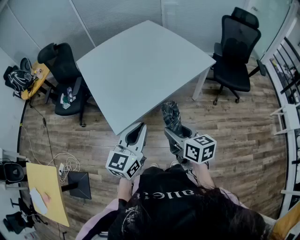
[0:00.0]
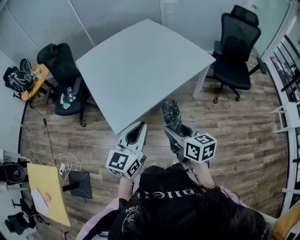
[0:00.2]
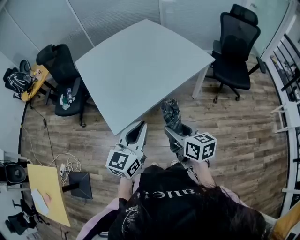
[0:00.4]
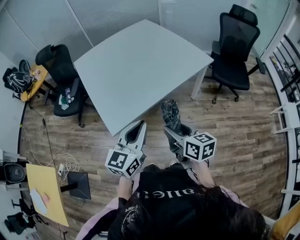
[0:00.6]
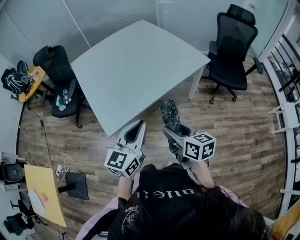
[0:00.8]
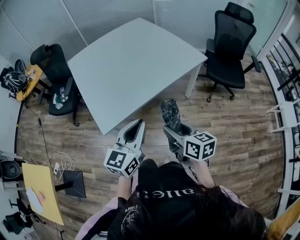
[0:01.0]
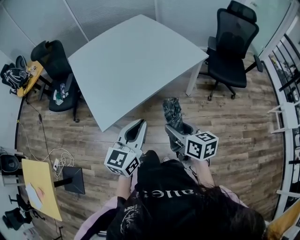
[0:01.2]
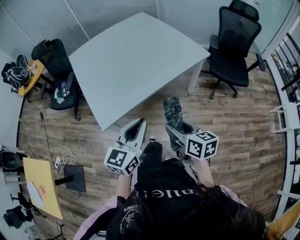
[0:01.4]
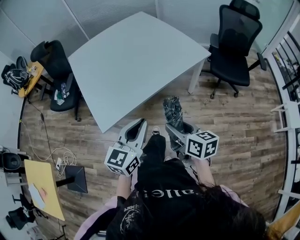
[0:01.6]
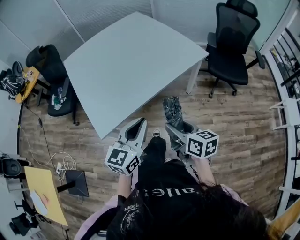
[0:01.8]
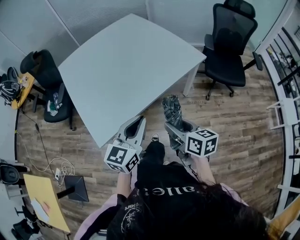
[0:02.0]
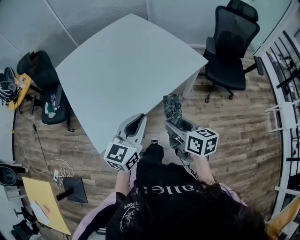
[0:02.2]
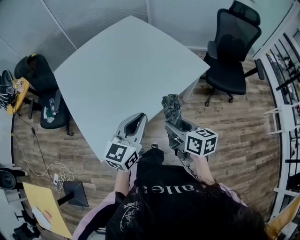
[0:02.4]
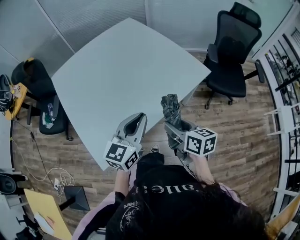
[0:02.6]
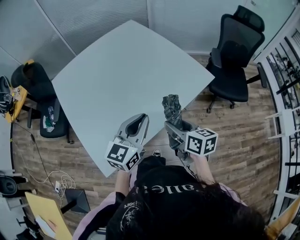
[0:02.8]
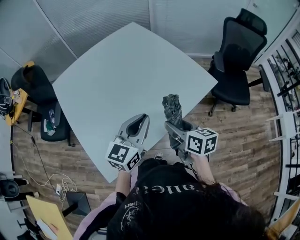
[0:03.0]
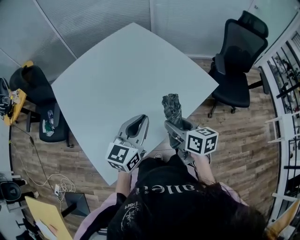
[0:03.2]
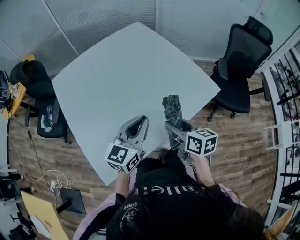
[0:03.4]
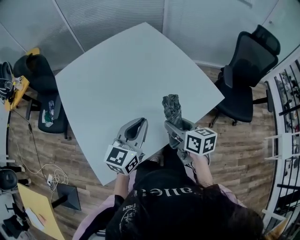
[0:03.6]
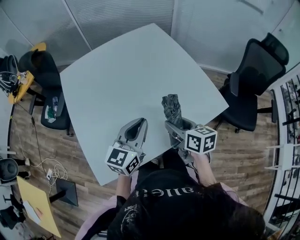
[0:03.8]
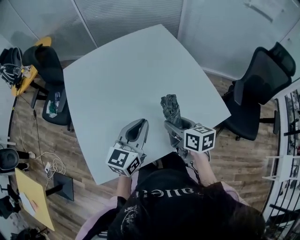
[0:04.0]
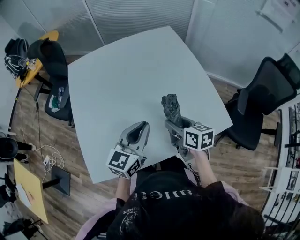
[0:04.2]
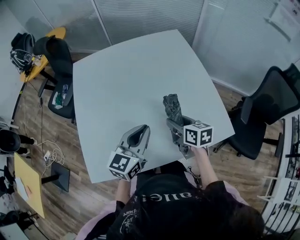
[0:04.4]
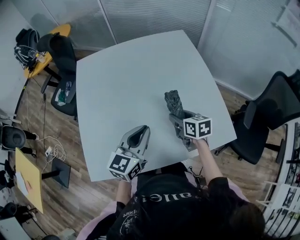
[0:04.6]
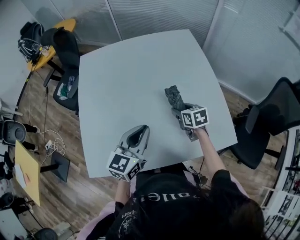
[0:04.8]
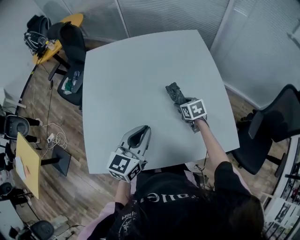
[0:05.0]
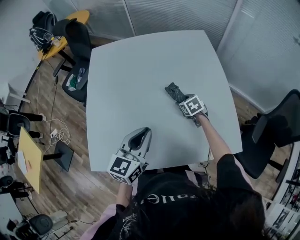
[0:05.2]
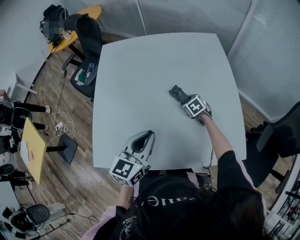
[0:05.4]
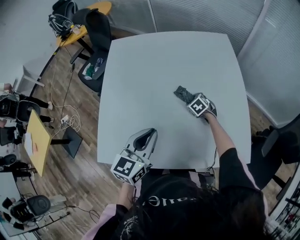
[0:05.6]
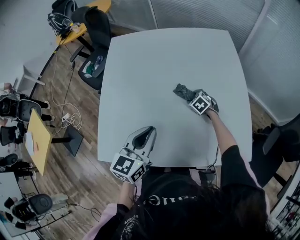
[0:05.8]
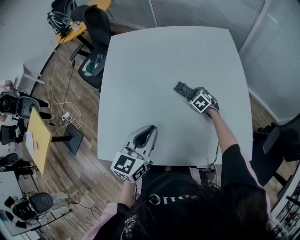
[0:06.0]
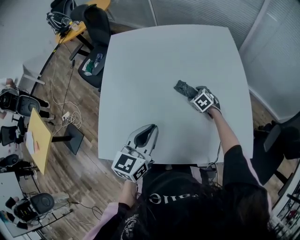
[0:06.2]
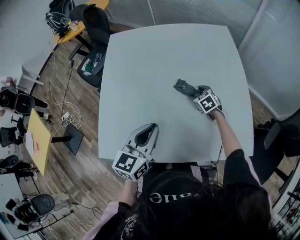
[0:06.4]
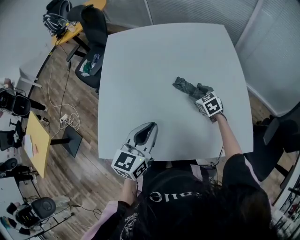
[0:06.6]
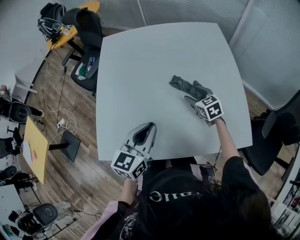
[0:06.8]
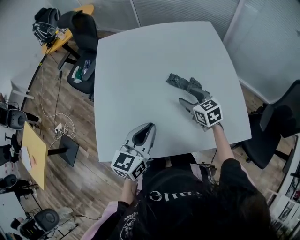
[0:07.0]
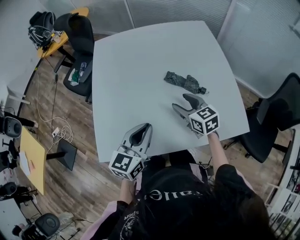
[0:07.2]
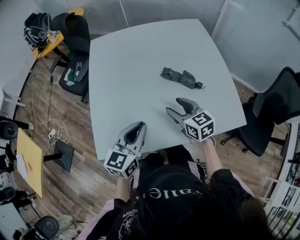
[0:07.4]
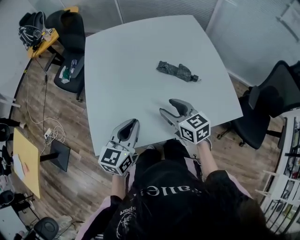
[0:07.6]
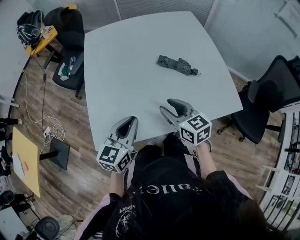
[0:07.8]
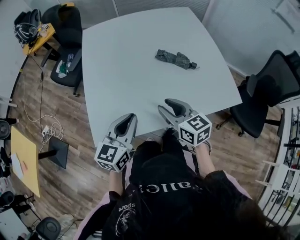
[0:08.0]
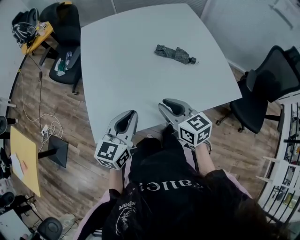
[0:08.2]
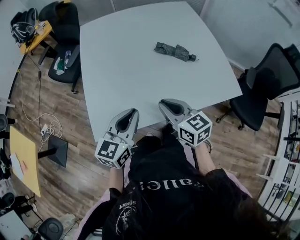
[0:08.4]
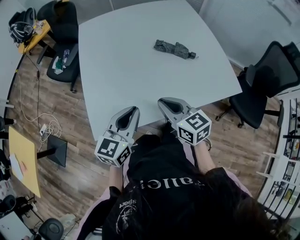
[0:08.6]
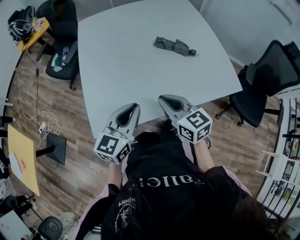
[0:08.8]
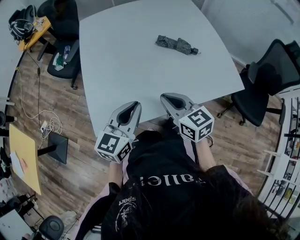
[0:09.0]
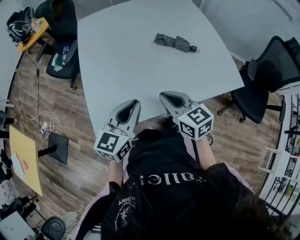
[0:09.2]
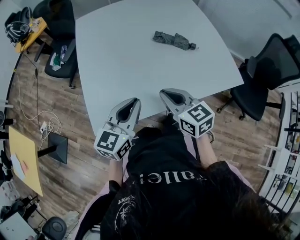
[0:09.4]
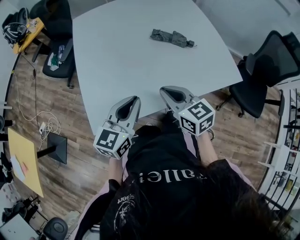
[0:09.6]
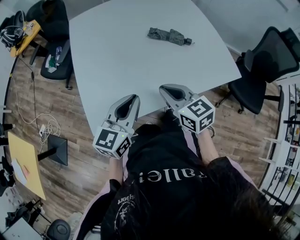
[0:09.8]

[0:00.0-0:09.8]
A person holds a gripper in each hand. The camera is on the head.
0:00.0 to 0:01.4: Both grippers move to the right, roughly 10 cm.
0:01.4 to 0:02.8: The grippers both shift forward by some 25 cm.
0:02.8 to 0:04.2: Both grippers move forward, some 15 cm. The right gripper changes its angle by some 20 degrees; the left gripper turns by roughly 20 degrees.
0:04.2 to 0:05.6: The left gripper rotates approximately 20 degrees. Meanwhile the right gripper travels forward and downward by some 30 cm, and twists roughly 60 degrees counterclockwise, seen from behind.
0:05.6 to 0:07.0: The right gripper moves upward and backward, approximately 20 cm, and changes its angle by approximately 30 degrees.
0:07.0 to 0:08.4: The left gripper shifts about 15 cm backward and to the left. Meanwhile the right gripper is displaced backward and to the left by roughly 25 cm, and closes its fingers.
0:08.4 to 0:09.8: The grippers make only small movements.

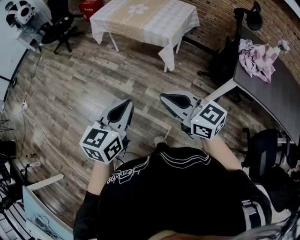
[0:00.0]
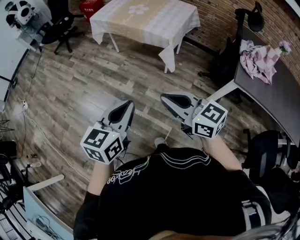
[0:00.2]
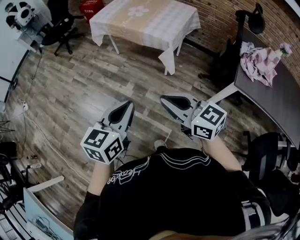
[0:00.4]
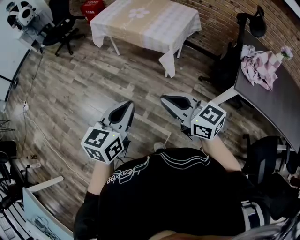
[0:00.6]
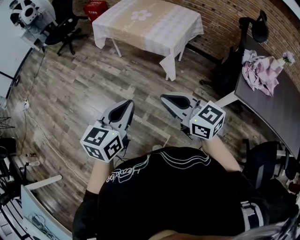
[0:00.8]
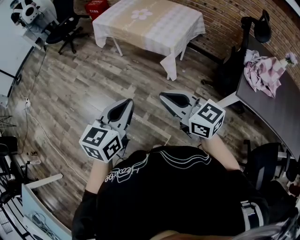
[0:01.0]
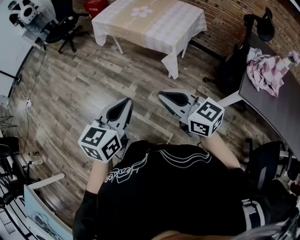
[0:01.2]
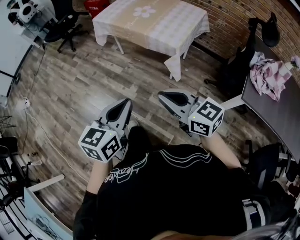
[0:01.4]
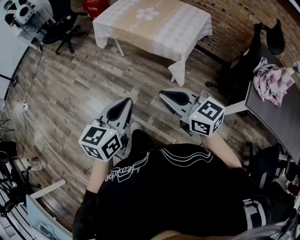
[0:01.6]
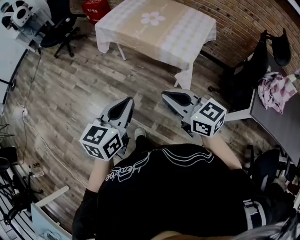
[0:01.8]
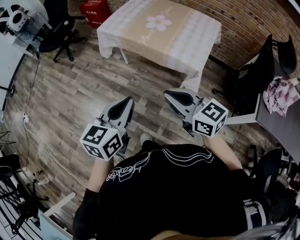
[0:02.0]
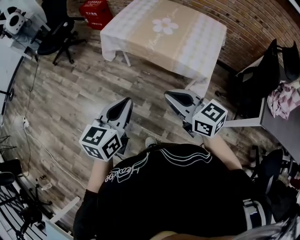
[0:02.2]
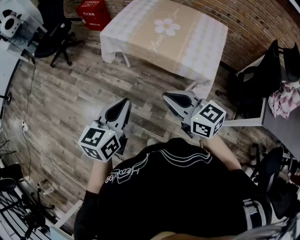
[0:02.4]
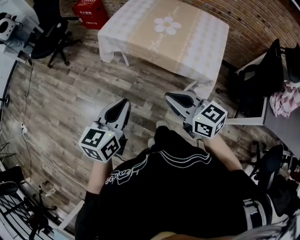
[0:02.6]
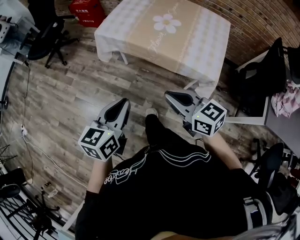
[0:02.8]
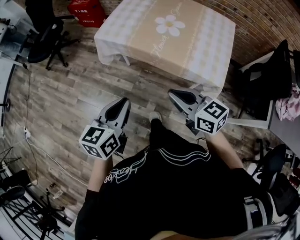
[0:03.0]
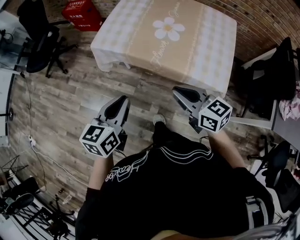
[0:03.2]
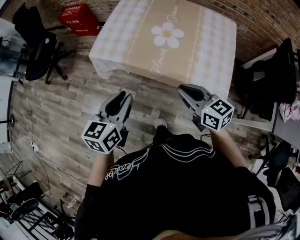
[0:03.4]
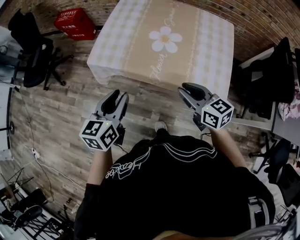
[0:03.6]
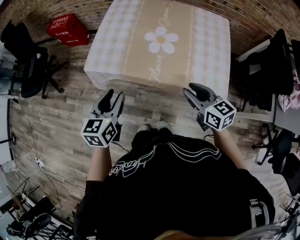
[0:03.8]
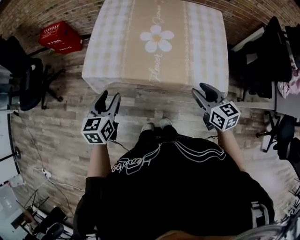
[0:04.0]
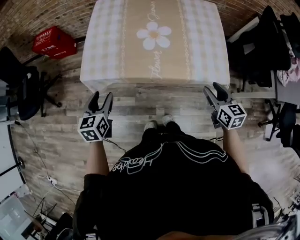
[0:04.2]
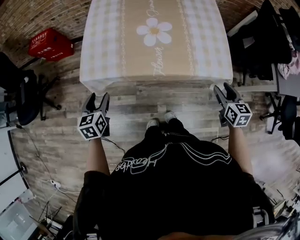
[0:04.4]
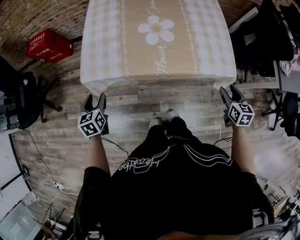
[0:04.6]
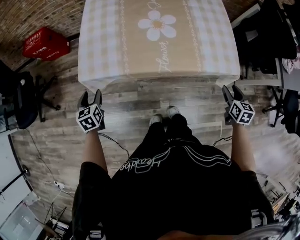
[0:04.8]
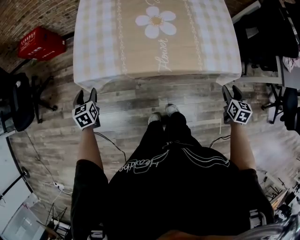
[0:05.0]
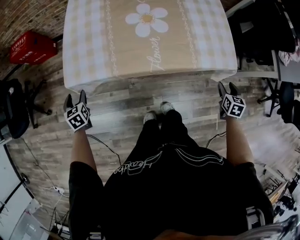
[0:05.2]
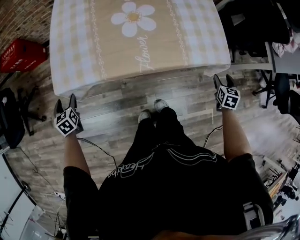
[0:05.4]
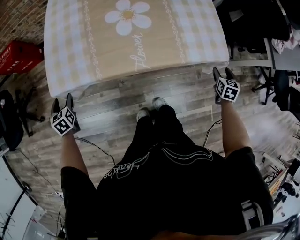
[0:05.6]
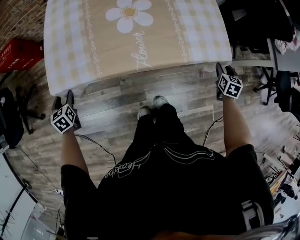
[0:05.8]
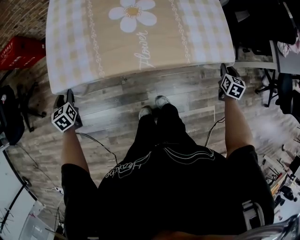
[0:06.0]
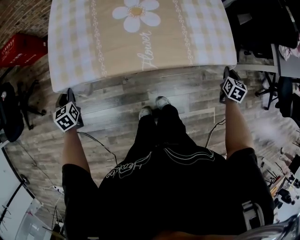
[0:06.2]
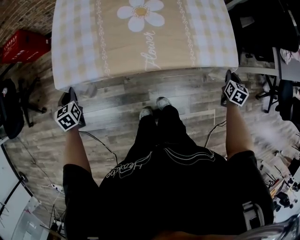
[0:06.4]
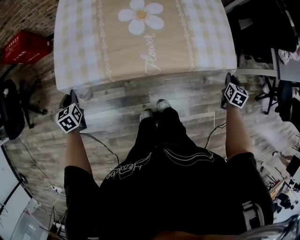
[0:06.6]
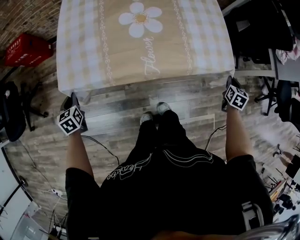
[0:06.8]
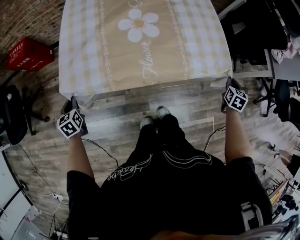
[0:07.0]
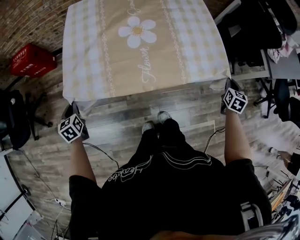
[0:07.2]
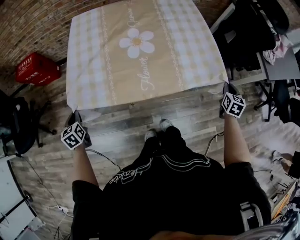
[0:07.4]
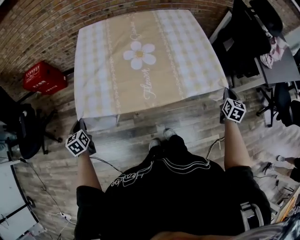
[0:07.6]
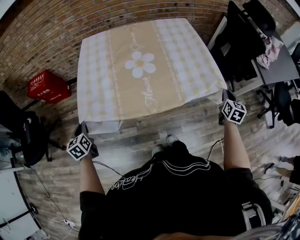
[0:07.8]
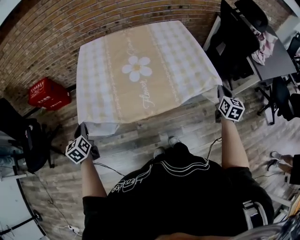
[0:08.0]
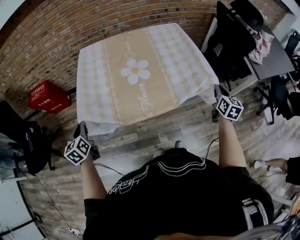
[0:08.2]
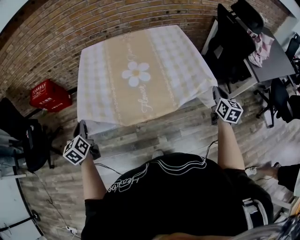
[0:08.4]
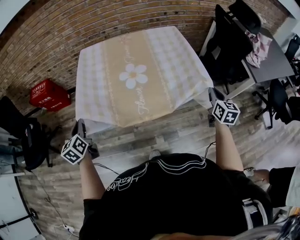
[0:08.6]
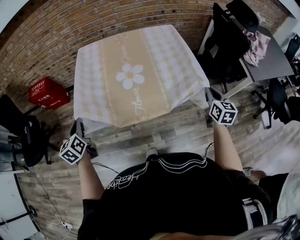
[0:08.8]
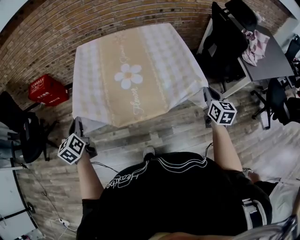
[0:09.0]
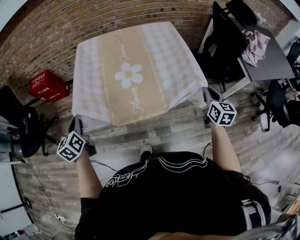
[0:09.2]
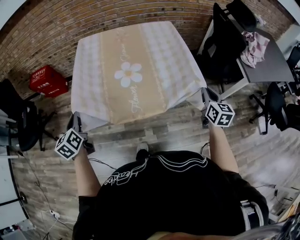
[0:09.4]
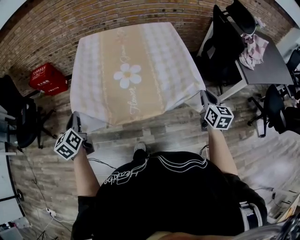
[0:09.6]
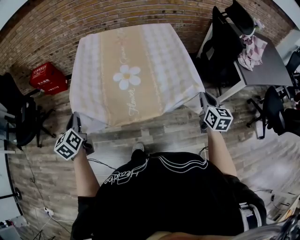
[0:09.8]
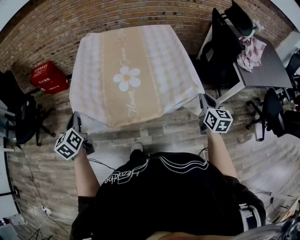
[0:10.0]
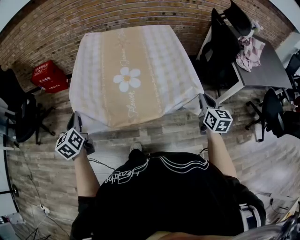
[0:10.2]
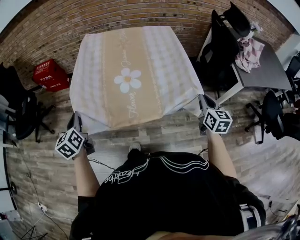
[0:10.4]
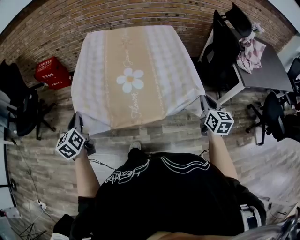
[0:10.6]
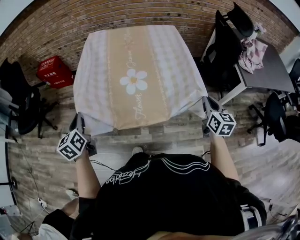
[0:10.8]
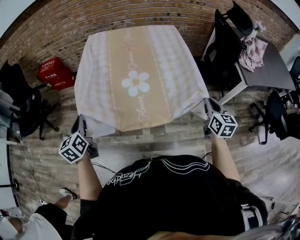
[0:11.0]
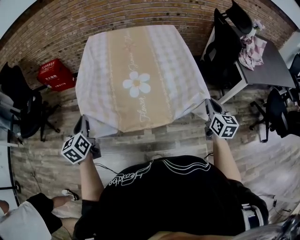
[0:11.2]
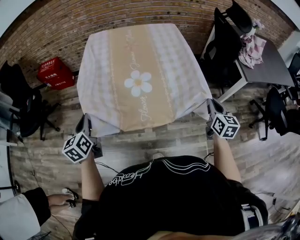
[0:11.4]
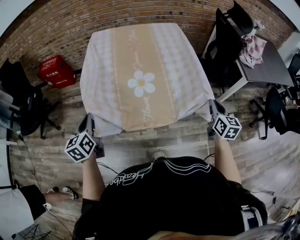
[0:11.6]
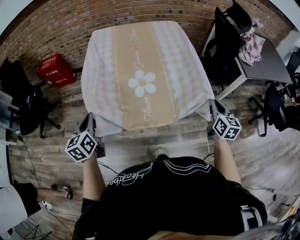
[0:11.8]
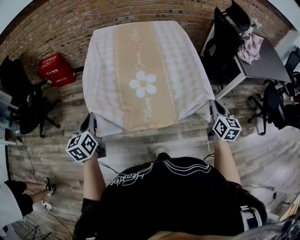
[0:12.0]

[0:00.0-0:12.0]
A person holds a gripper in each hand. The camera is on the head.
0:00.0 to 0:01.6: The grippers both shift forward by approximately 20 cm.
0:01.6 to 0:03.0: The left gripper heads forward and to the left, covering about 40 cm, while the right gripper heads forward, covering about 35 cm.
0:03.0 to 0:04.4: The left gripper ends up some 35 cm from where it was, swivels approximately 20 degrees, and opens up, while the right gripper changes place by about 25 cm, turns by approximately 60 degrees, and opens up.
0:04.4 to 0:06.0: The right gripper travels downward and to the right by about 20 cm, swivels roughly 30 degrees, and closes up. Meanwhile the left gripper heads downward, to the left and forward, covering approximately 20 cm.
0:06.0 to 0:07.6: The grippers both shift upward by roughly 15 cm. The right gripper closes. Meanwhile the left gripper closes up.
0:07.6 to 0:09.0: The left gripper moves upward and to the right, some 25 cm. Meanwhile the right gripper is displaced upward by roughly 10 cm, and turns by roughly 20 degrees.
0:09.0 to 0:10.4: The right gripper shifts approximately 10 cm backward. Meanwhile the left gripper heads backward and to the right, covering roughly 15 cm.
0:10.4 to 0:12.0: The right gripper goes approximately 15 cm backward and to the left. The left gripper is displaced backward by some 10 cm.

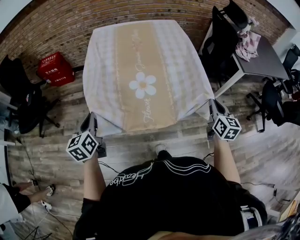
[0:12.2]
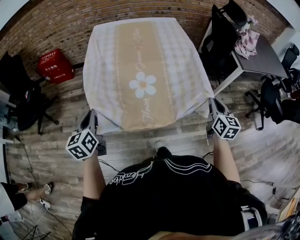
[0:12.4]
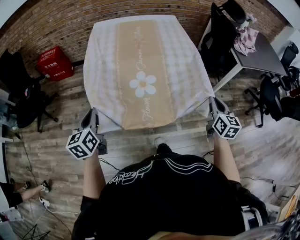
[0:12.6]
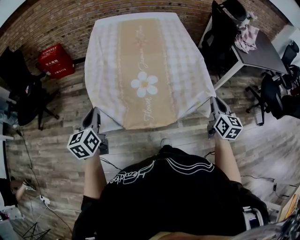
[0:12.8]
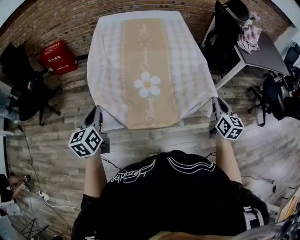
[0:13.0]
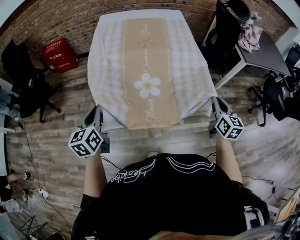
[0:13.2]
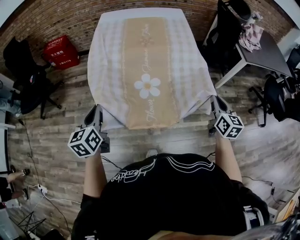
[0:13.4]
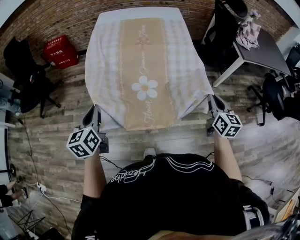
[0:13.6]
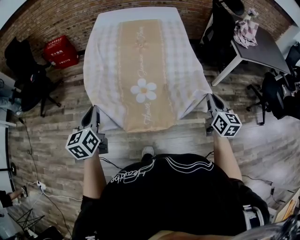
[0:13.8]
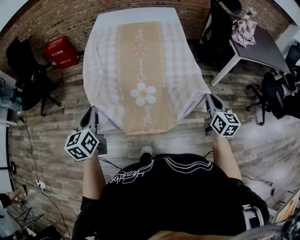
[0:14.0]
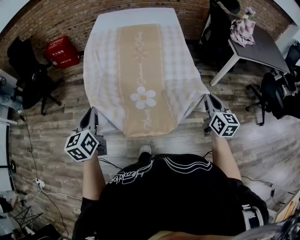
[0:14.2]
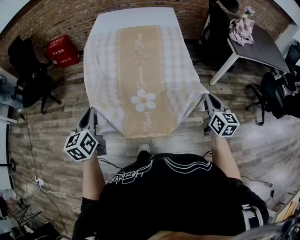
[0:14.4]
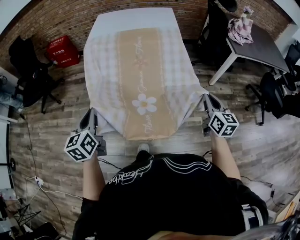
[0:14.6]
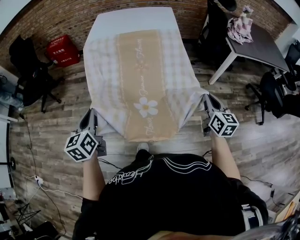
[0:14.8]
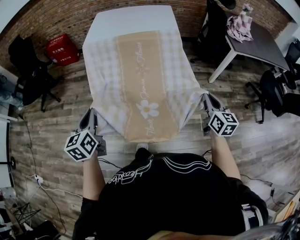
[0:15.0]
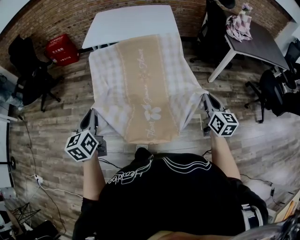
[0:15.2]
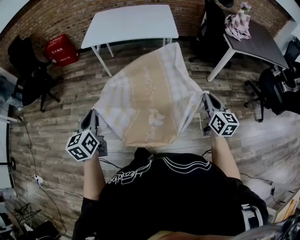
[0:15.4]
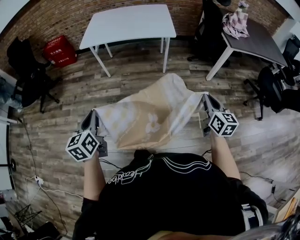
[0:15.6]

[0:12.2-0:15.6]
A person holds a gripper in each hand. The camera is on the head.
0:12.2 to 0:13.8: The grippers both shift backward by approximately 15 cm.
0:13.8 to 0:15.6: Both grippers move backward and to the right, some 15 cm.
